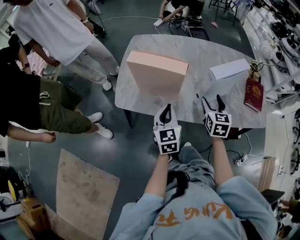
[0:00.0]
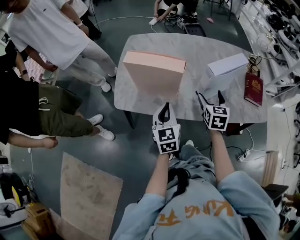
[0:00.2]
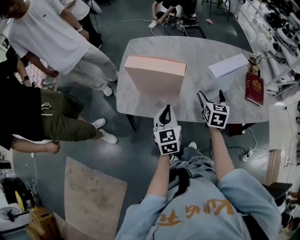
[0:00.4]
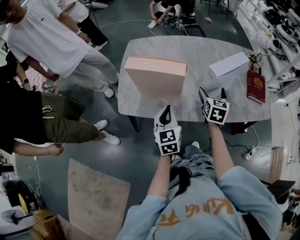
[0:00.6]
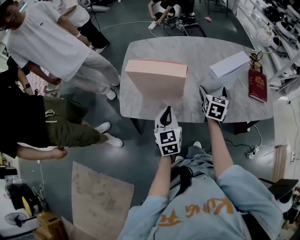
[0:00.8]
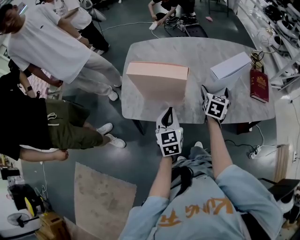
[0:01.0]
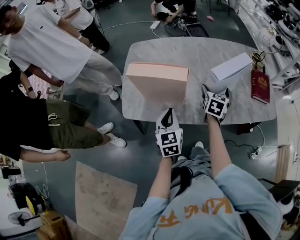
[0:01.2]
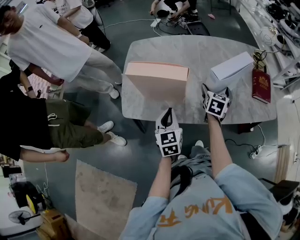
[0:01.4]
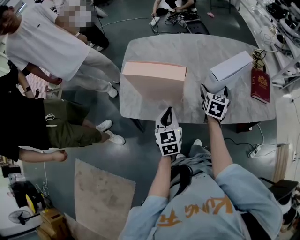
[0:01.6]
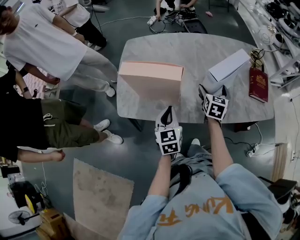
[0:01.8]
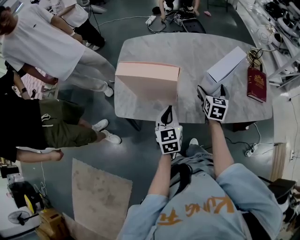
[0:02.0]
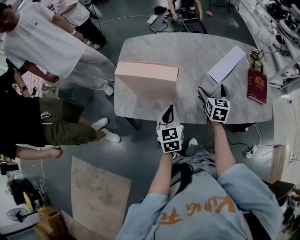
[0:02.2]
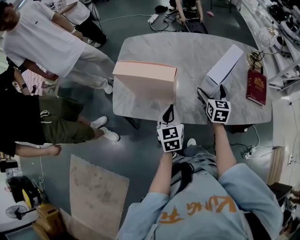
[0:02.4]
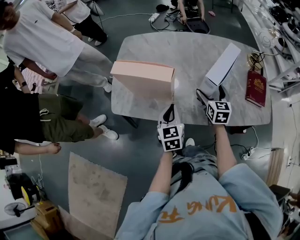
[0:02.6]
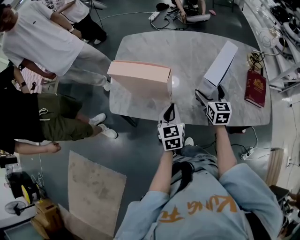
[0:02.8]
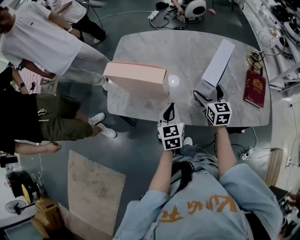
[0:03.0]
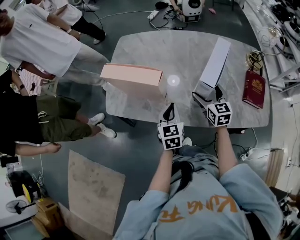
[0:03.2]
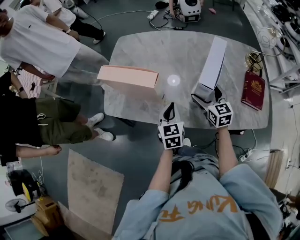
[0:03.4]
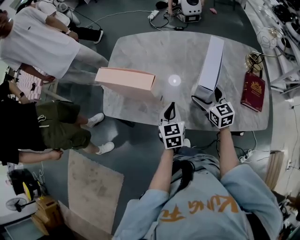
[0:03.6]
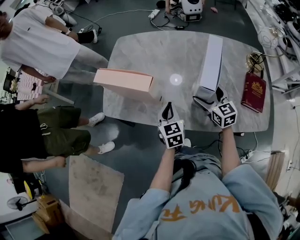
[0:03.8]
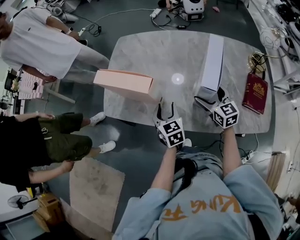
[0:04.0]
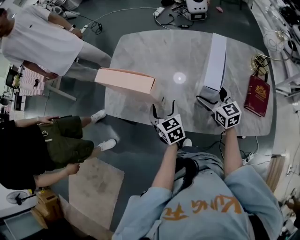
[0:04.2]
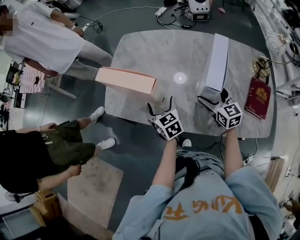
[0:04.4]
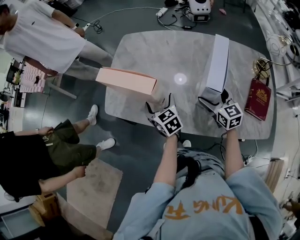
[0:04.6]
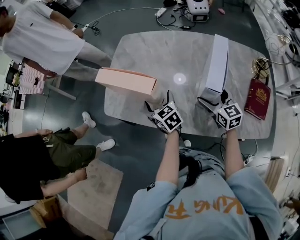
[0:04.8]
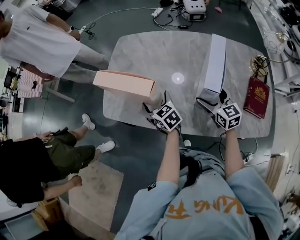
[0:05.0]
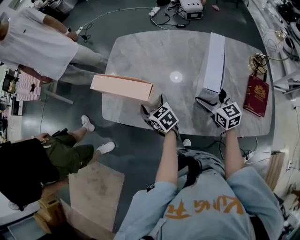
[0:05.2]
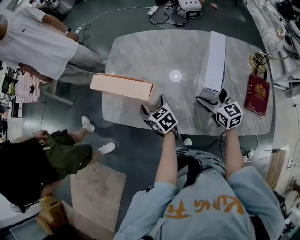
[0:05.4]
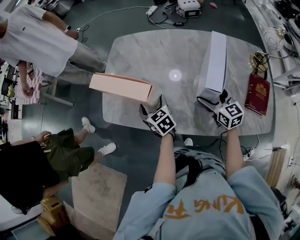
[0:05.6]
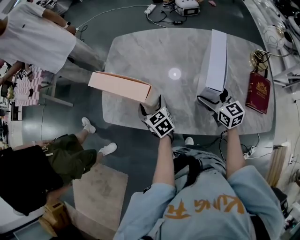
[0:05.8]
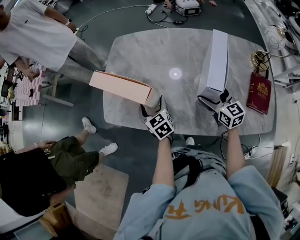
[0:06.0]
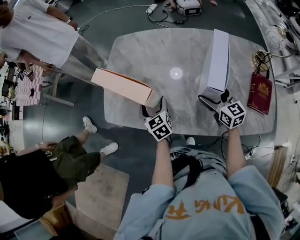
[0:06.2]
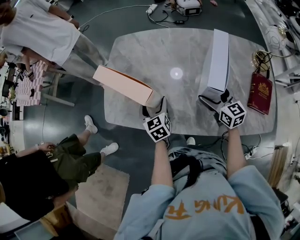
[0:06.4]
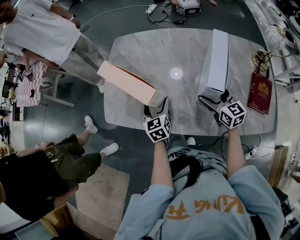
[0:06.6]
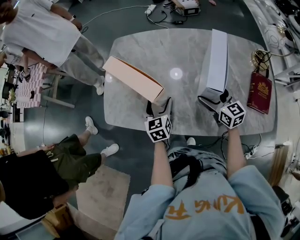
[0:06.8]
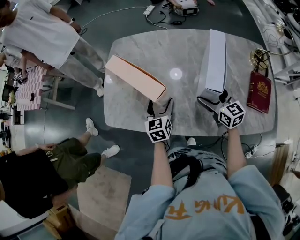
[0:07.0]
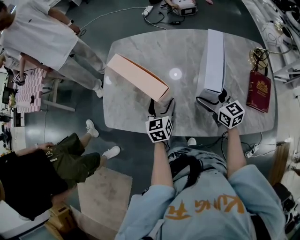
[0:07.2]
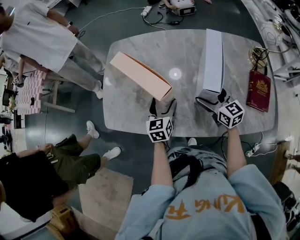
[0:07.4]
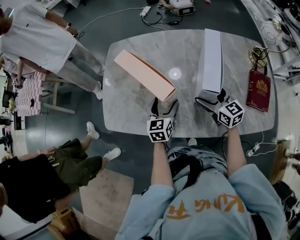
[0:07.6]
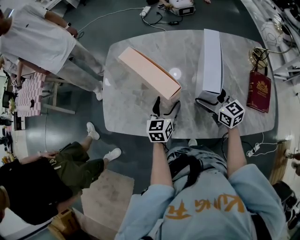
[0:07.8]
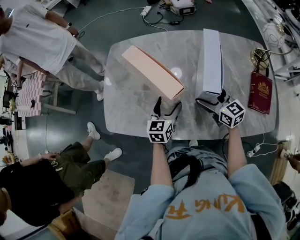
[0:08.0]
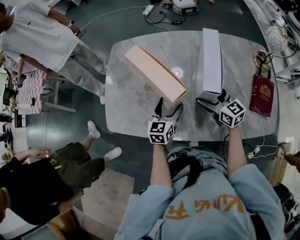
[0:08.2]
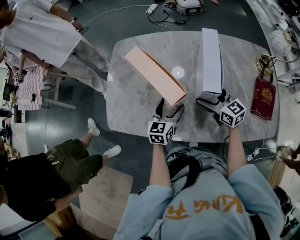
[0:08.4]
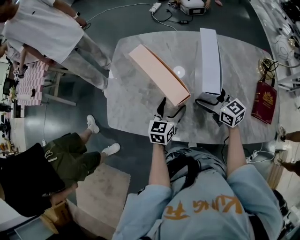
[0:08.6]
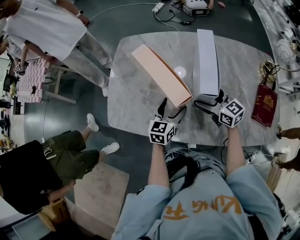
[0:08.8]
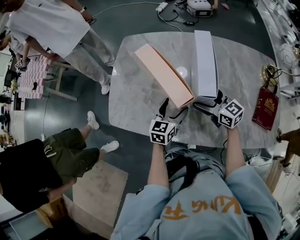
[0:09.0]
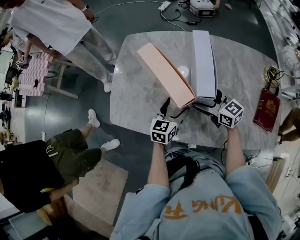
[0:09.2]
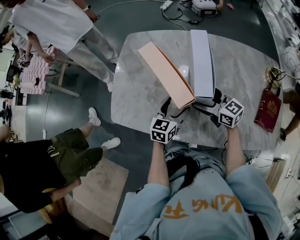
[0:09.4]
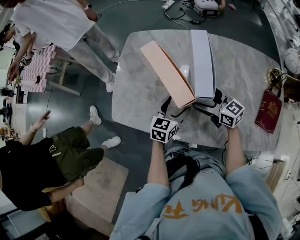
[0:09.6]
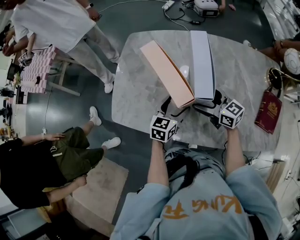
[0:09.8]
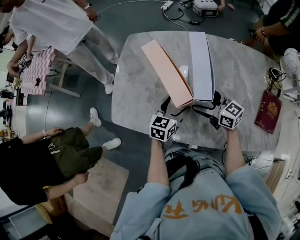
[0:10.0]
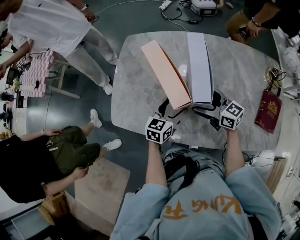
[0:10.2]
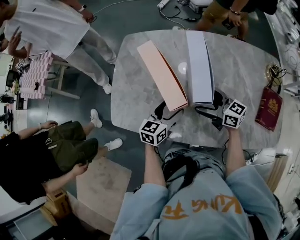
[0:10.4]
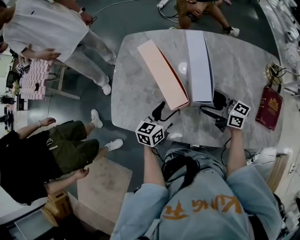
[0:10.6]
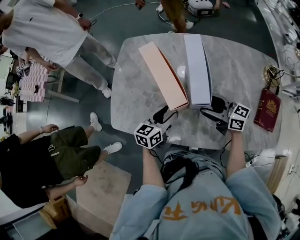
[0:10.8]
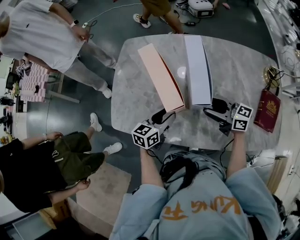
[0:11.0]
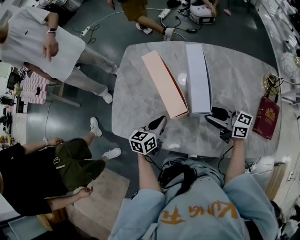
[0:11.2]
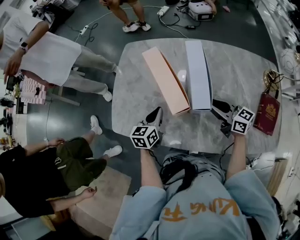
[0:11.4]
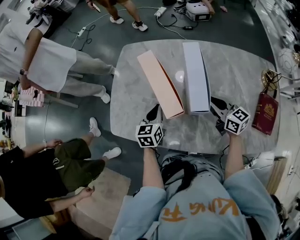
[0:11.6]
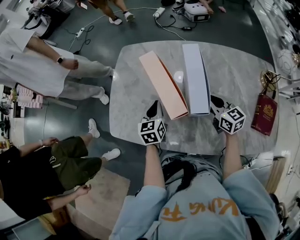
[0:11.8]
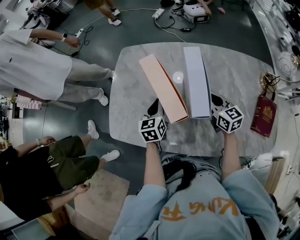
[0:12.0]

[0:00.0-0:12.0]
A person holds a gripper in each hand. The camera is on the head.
0:00.0 to 0:01.6: The right gripper travels forward by about 10 cm, swivels about 20 degrees, and opens.
0:01.6 to 0:03.0: The left gripper moves to the right, roughly 10 cm. The right gripper rotates approximately 30 degrees.
0:03.0 to 0:04.4: The left gripper moves forward, roughly 5 cm, changes its angle by some 30 degrees, and opens.
0:04.4 to 0:06.0: The left gripper goes about 5 cm forward.
0:06.0 to 0:07.6: The left gripper is displaced to the right by roughly 10 cm, and rotates about 30 degrees.
0:07.6 to 0:09.0: The right gripper travels to the left by some 5 cm.
0:09.0 to 0:10.4: The grippers move only a little.
0:10.4 to 0:12.0: The right gripper goes roughly 10 cm forward and to the right, rotates roughly 30 degrees, and closes its fingers. The left gripper is displaced forward by some 10 cm, turns by about 20 degrees, and closes.

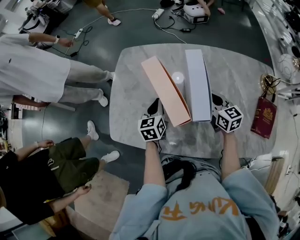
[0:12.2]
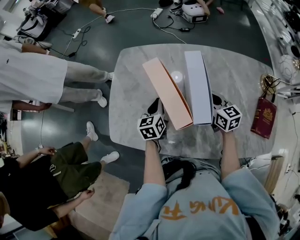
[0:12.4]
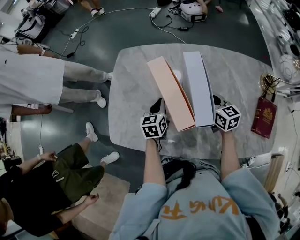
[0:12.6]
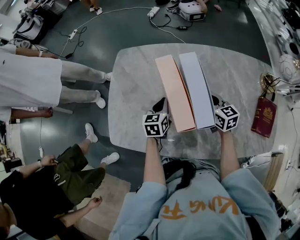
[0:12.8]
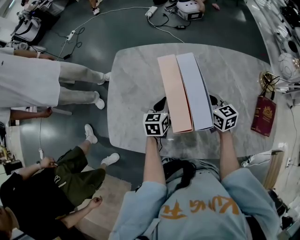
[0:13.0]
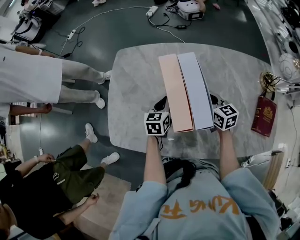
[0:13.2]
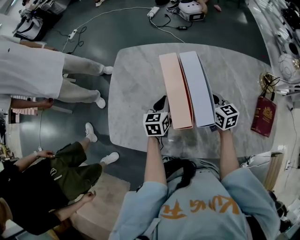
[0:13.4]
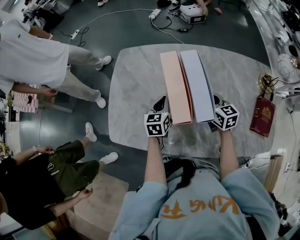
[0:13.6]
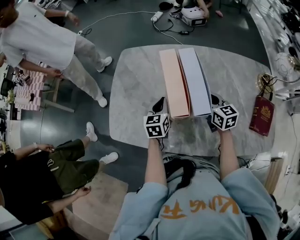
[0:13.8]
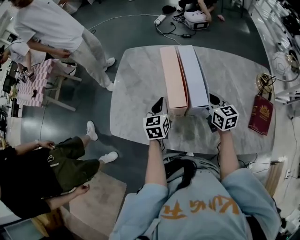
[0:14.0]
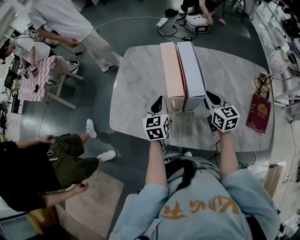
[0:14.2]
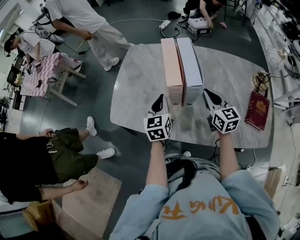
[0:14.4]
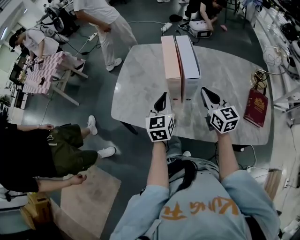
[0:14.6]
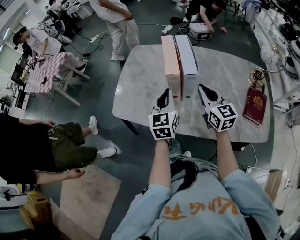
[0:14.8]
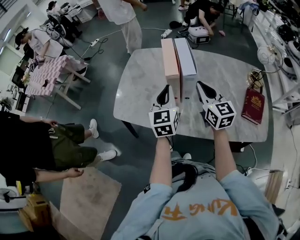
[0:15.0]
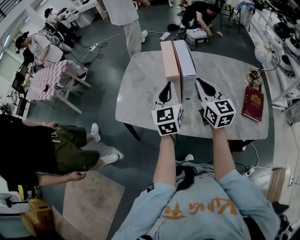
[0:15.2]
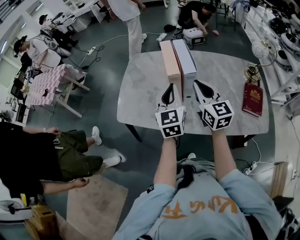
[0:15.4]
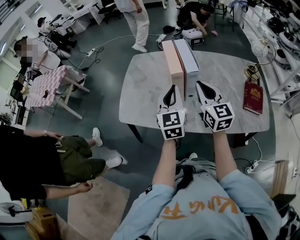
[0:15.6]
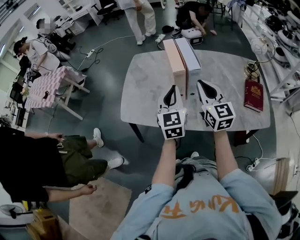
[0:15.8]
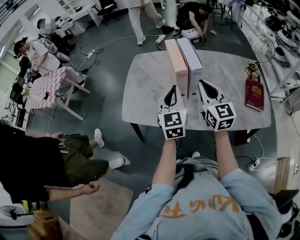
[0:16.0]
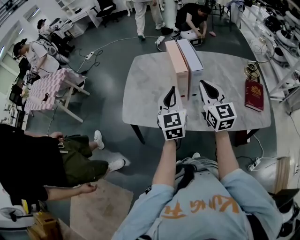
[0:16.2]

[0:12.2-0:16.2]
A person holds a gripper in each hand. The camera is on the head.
0:13.6 to 0:14.8: The two grippers go roughly 25 cm backward and upward. The right gripper rotates about 20 degrees, while the left gripper rotates some 30 degrees.
0:14.8 to 0:16.2: The right gripper moves upward and to the left, approximately 10 cm, while the left gripper heads upward, covering approximately 5 cm.

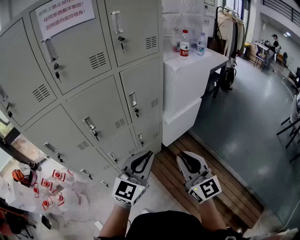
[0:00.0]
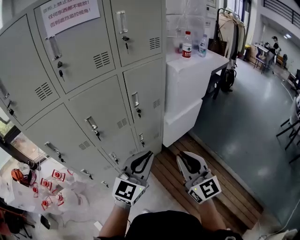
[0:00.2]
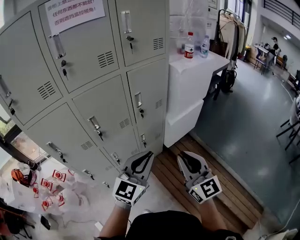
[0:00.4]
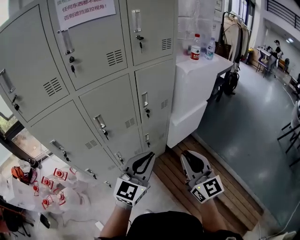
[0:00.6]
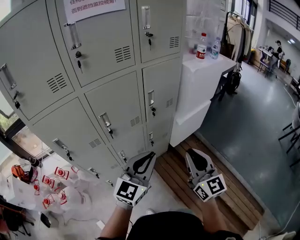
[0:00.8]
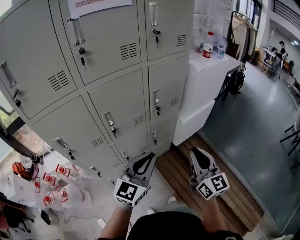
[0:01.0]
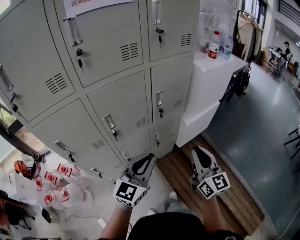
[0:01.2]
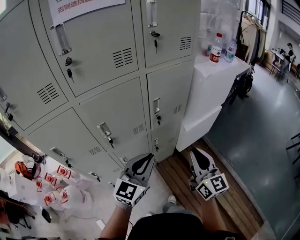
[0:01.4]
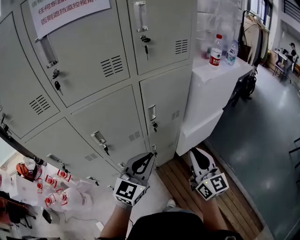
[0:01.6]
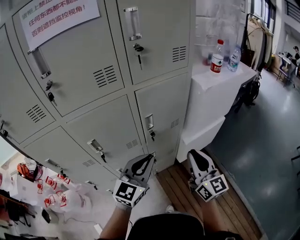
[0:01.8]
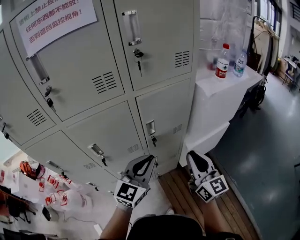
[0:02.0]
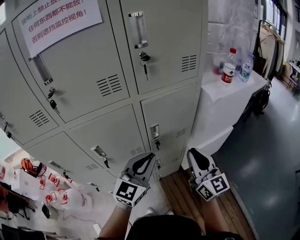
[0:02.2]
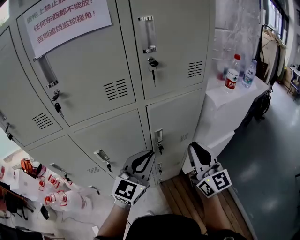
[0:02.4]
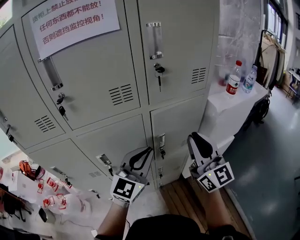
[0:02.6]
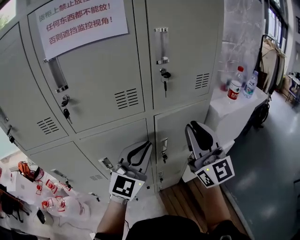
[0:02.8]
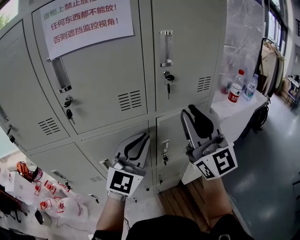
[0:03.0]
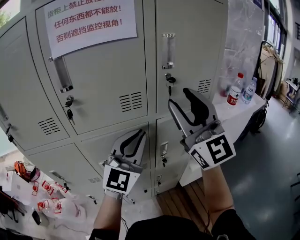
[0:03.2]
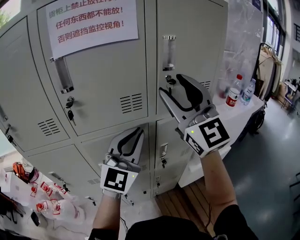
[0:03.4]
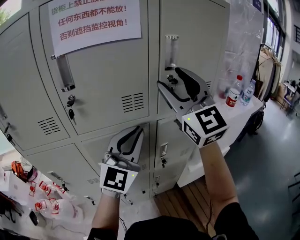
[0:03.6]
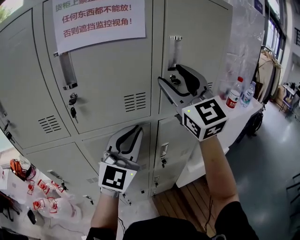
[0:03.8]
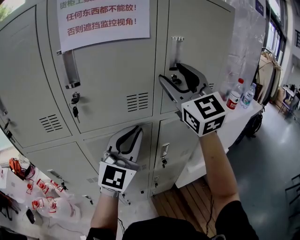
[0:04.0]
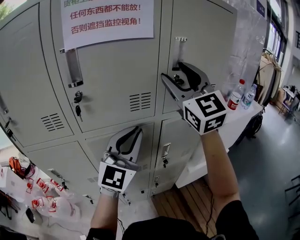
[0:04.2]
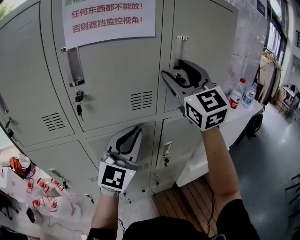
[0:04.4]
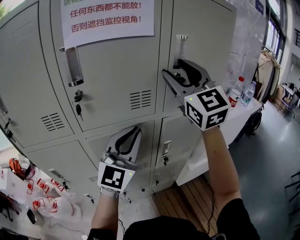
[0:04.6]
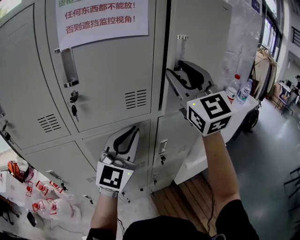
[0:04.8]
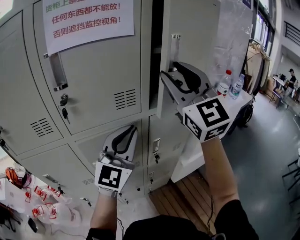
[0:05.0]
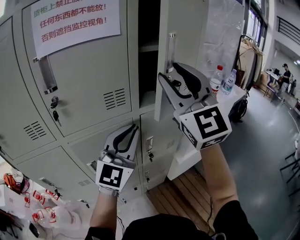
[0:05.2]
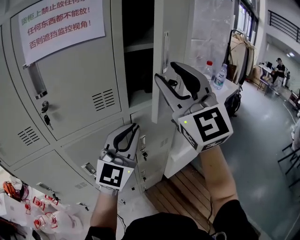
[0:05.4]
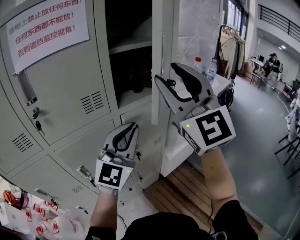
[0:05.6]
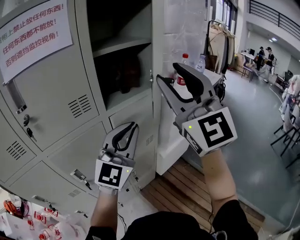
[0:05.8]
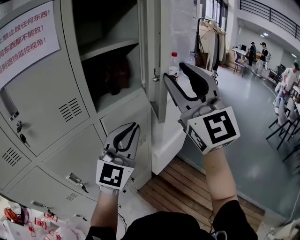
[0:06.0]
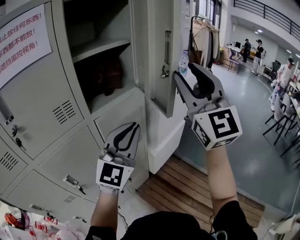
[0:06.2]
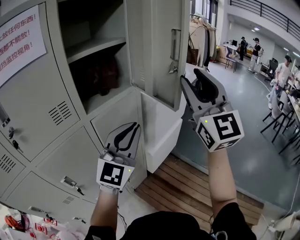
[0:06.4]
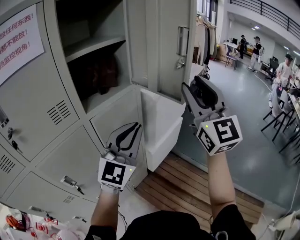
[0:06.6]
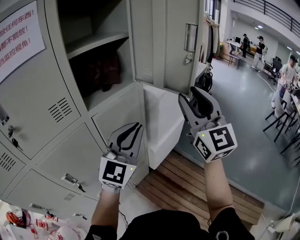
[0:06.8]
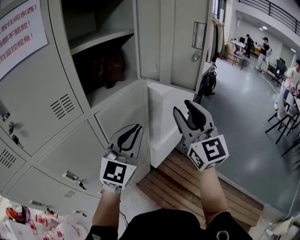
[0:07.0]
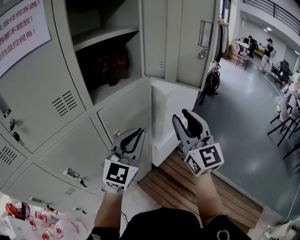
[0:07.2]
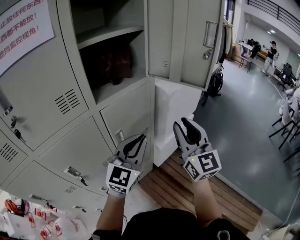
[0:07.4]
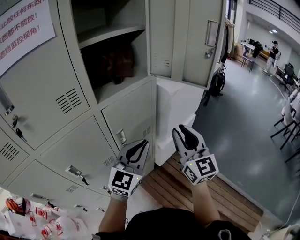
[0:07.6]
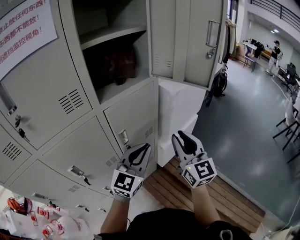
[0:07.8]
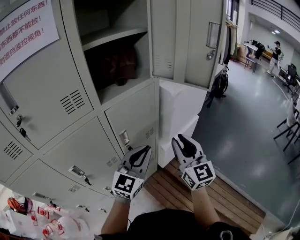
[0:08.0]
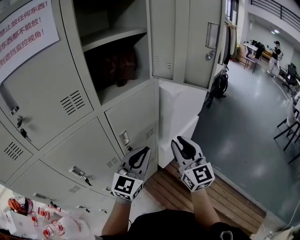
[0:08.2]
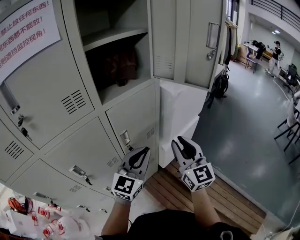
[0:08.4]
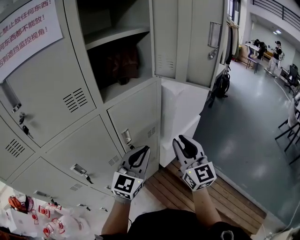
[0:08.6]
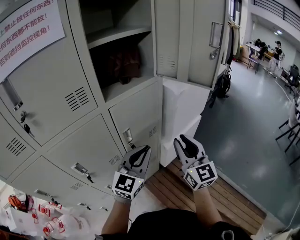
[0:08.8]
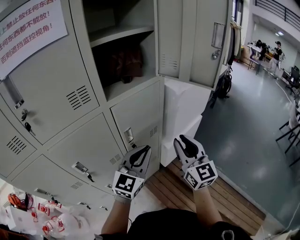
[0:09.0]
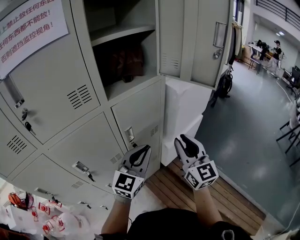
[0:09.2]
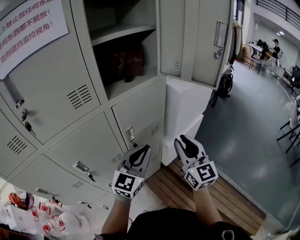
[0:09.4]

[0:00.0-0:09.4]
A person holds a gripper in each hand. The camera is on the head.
0:00.0 to 0:01.6: The right gripper shifts roughly 15 cm forward. Meanwhile the left gripper heads forward and to the left, covering approximately 15 cm.
0:01.6 to 0:03.2: The grippers both shift upward and forward by approximately 30 cm. The left gripper turns by some 30 degrees. The right gripper turns by approximately 40 degrees, and opens its fingers.
0:03.2 to 0:04.8: The right gripper goes about 5 cm forward.
0:04.8 to 0:06.2: The right gripper changes place by some 25 cm, and turns by roughly 30 degrees. The left gripper changes place by about 20 cm, and turns by about 30 degrees.
0:06.2 to 0:07.8: The left gripper shifts roughly 15 cm downward, and swivels approximately 20 degrees; the right gripper heads downward, covering roughly 25 cm, and swivels roughly 30 degrees.
0:07.8 to 0:09.4: The grippers move only a little.
